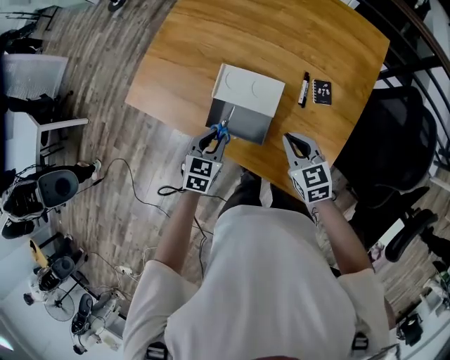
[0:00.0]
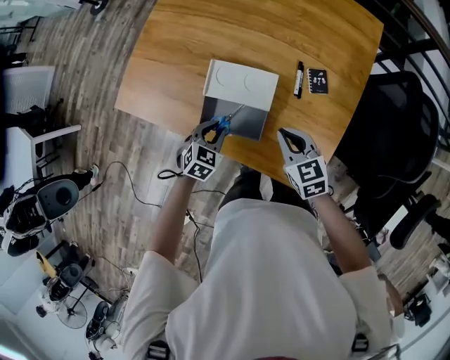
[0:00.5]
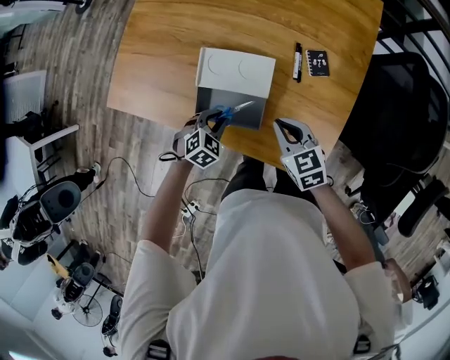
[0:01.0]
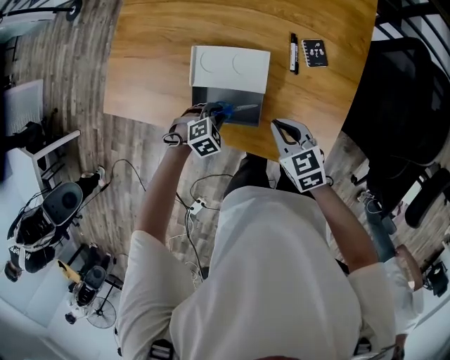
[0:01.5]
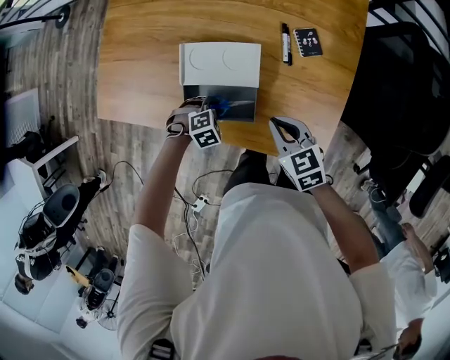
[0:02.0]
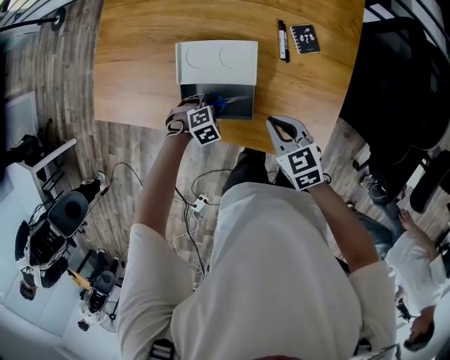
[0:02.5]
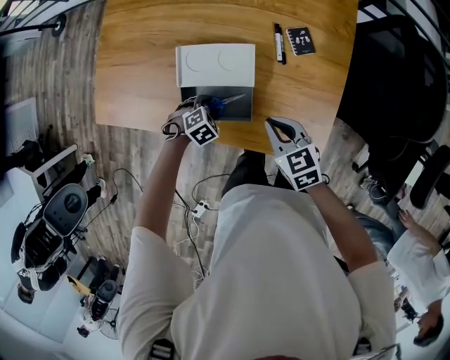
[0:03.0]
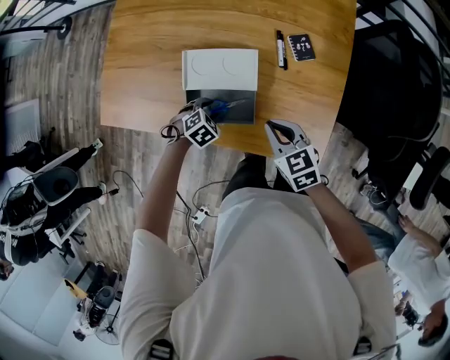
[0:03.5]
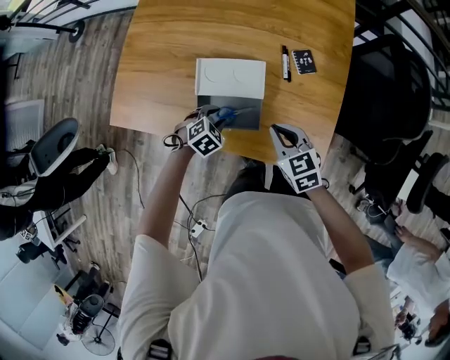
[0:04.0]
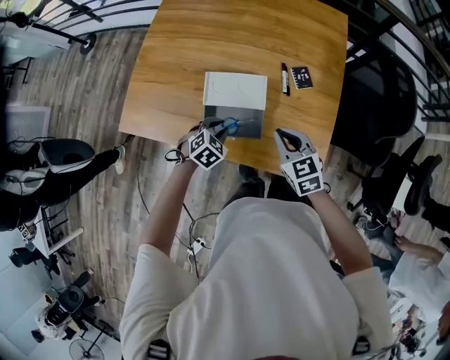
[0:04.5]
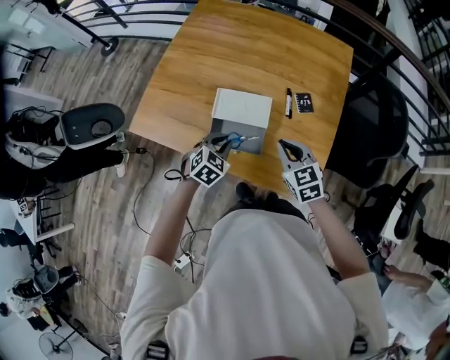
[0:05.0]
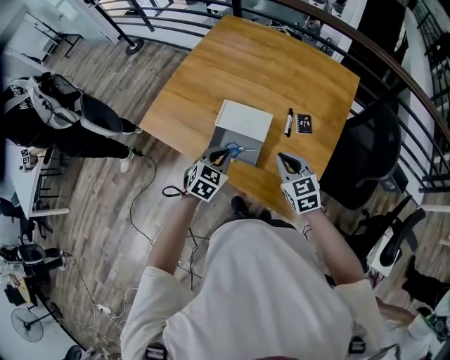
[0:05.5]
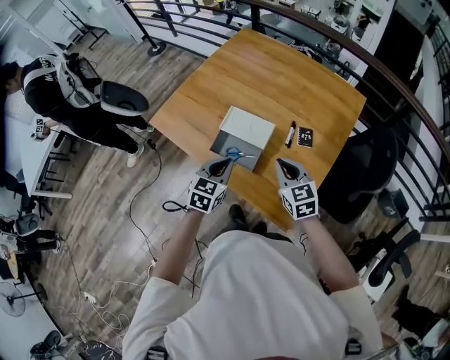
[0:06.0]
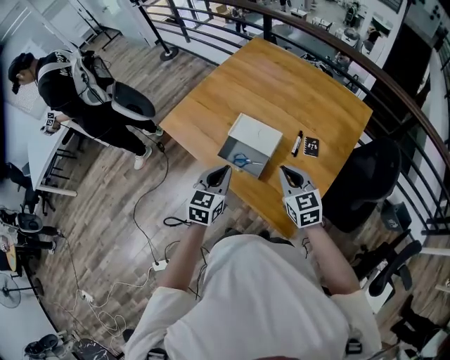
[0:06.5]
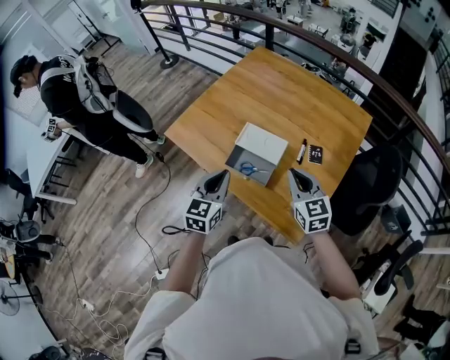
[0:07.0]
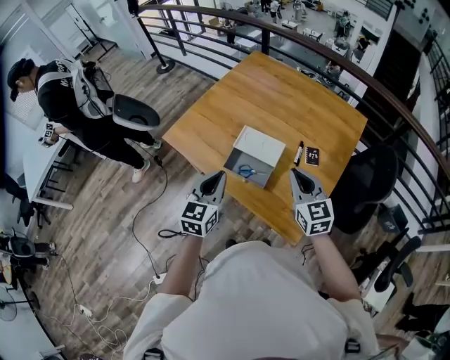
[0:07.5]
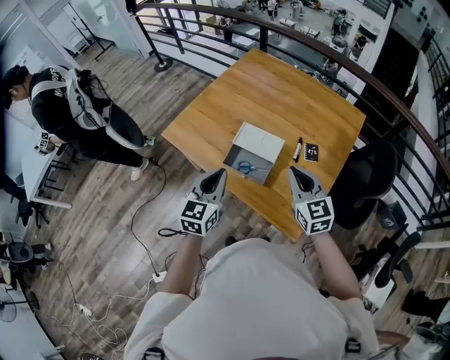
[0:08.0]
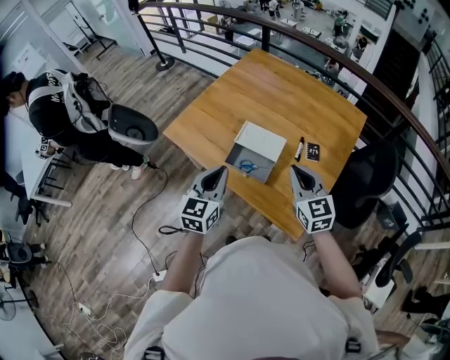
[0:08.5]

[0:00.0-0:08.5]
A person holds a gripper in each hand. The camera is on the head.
0:00.0 to 0:02.0: The left gripper heads downward, covering roughly 20 cm, and rolls clockwise, seen from behind, by about 60 degrees, while the right gripper is displaced downward by approximately 5 cm.
0:02.0 to 0:04.0: The right gripper ends up about 5 cm from where it was. The left gripper is displaced upward by roughly 10 cm, and rotates about 20 degrees.
0:04.0 to 0:06.5: The left gripper moves upward, some 30 cm, angles its fingers upward, by roughly 40 degrees, and closes; the right gripper shifts roughly 20 cm upward, and swivels roughly 30 degrees.
0:06.5 to 0:08.5: The right gripper is displaced upward by approximately 5 cm. Meanwhile the left gripper is displaced upward and to the left by roughly 10 cm.

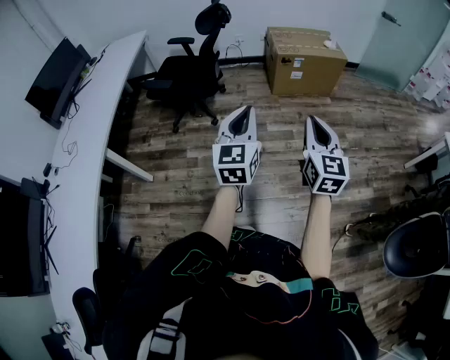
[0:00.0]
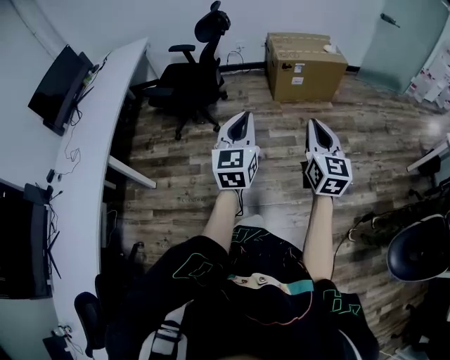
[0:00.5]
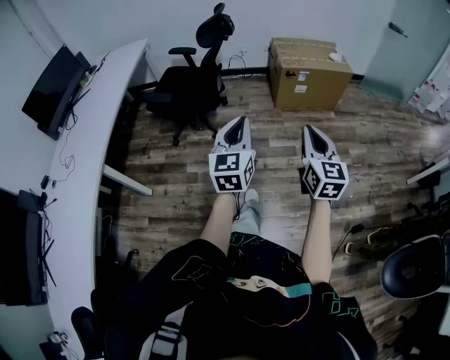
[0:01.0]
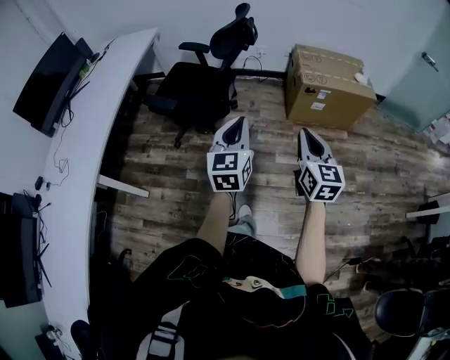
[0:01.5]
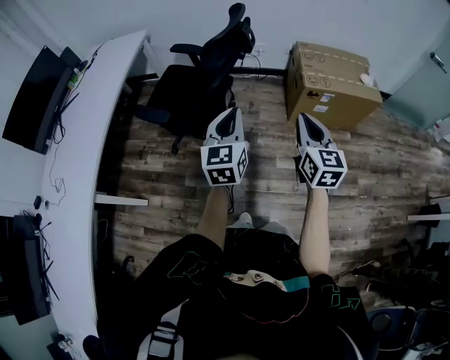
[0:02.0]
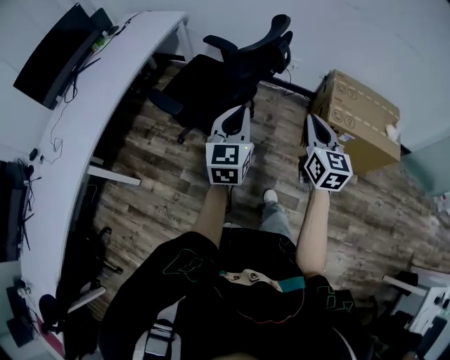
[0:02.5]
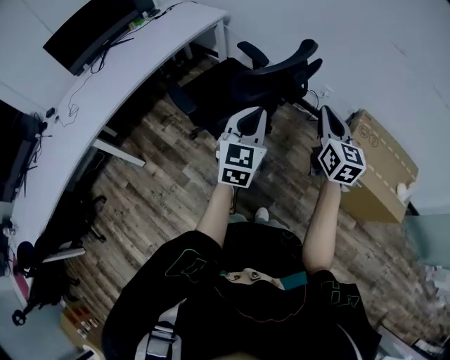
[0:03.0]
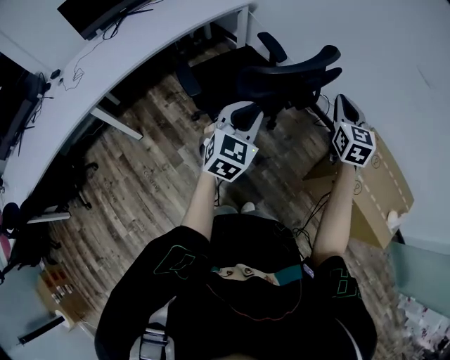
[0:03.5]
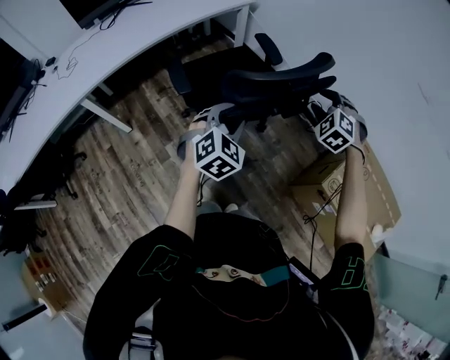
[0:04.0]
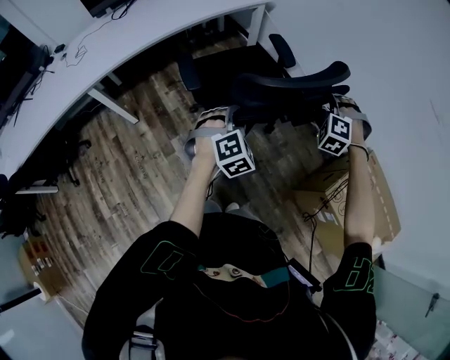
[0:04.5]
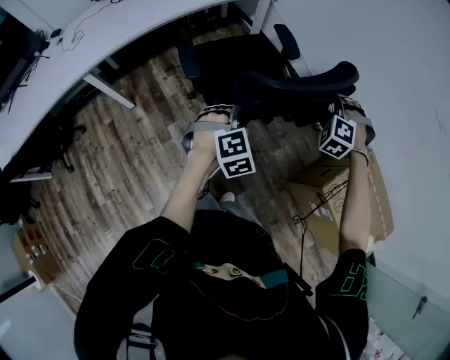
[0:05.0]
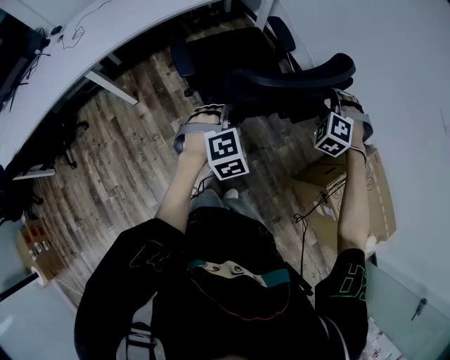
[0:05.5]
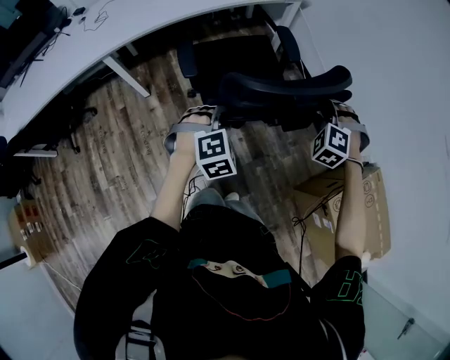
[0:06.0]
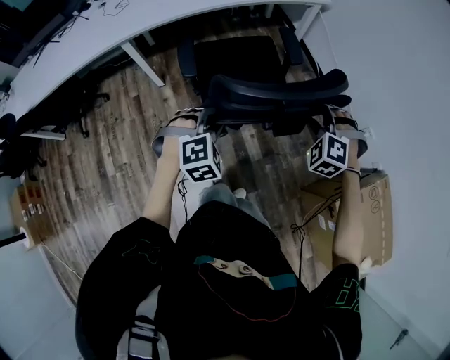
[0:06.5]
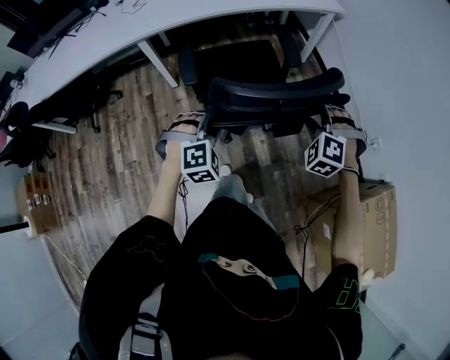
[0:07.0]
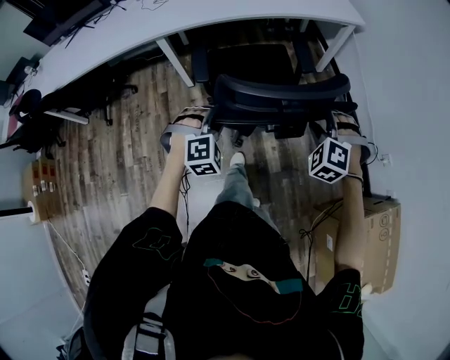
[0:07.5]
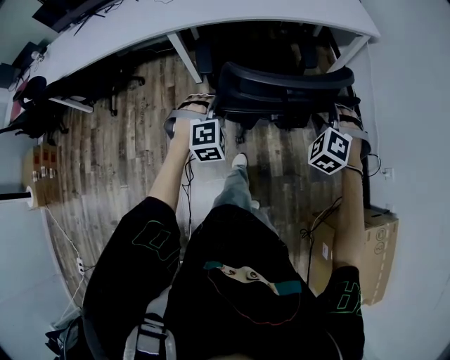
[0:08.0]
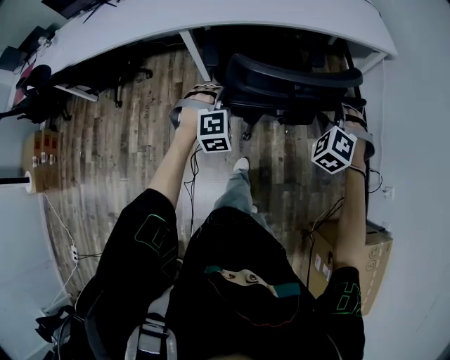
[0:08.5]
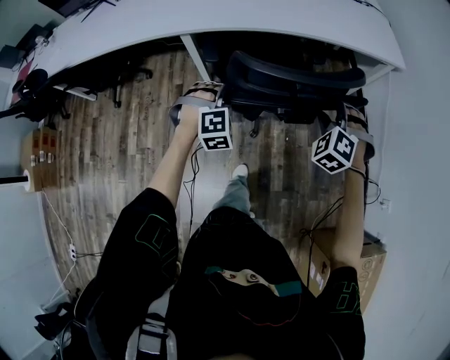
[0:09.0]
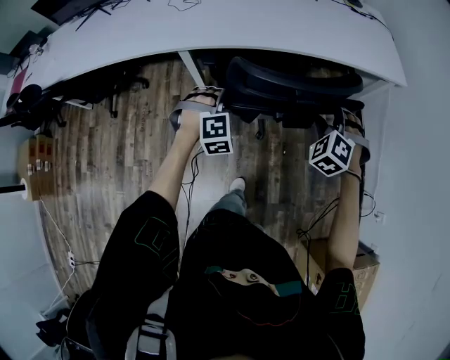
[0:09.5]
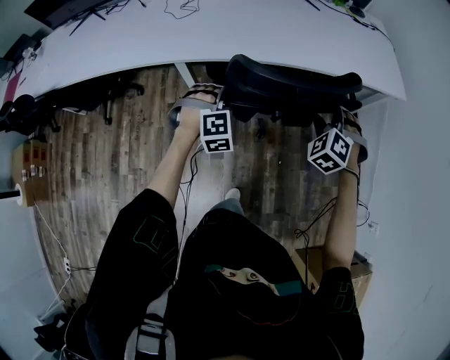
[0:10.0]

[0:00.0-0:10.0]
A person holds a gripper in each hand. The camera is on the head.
0:00.0 to 0:02.0: Both grippers are carried forward, some 40 cm.
0:02.0 to 0:04.0: The right gripper changes place by roughly 50 cm, rotates around the line of its fingers by roughly 80 degrees, counterclockwise from behind, and opens its fingers. Meanwhile the left gripper shifts by roughly 25 cm, rotates roughly 50 degrees, and opens up.
0:04.0 to 0:06.0: The left gripper shifts approximately 15 cm to the left and downward, and changes its angle by approximately 30 degrees, while the right gripper goes about 15 cm to the left, and changes its angle by about 20 degrees.
0:06.0 to 0:08.0: Both grippers move to the left, approximately 20 cm.
0:08.0 to 0:10.0: Both grippers travel together forward, about 30 cm.

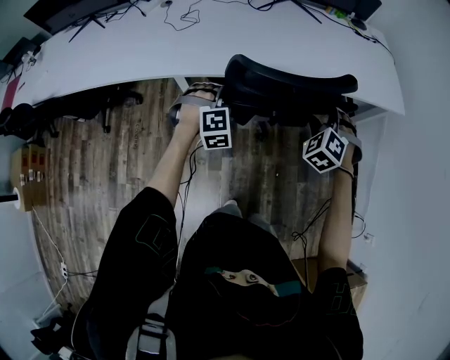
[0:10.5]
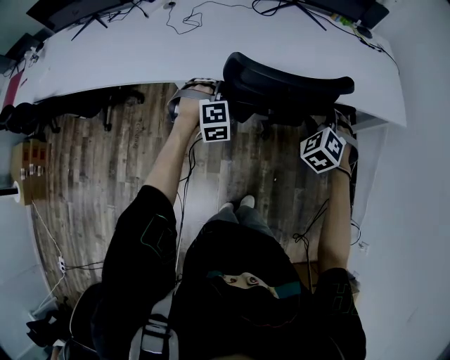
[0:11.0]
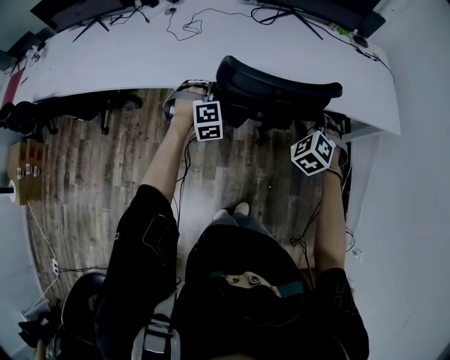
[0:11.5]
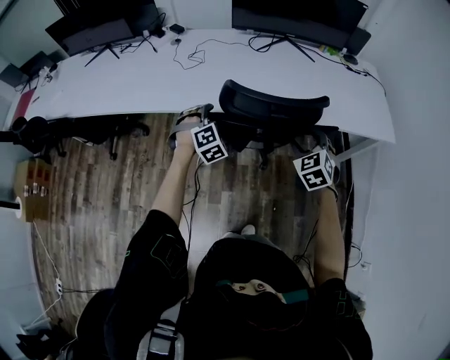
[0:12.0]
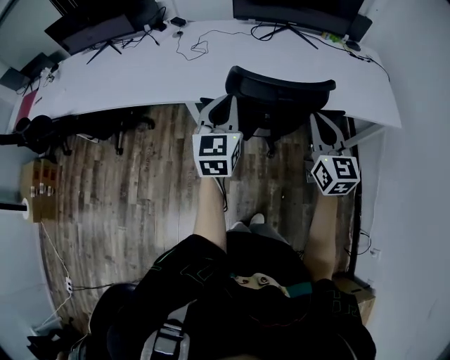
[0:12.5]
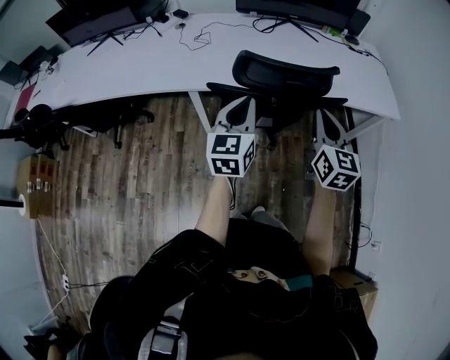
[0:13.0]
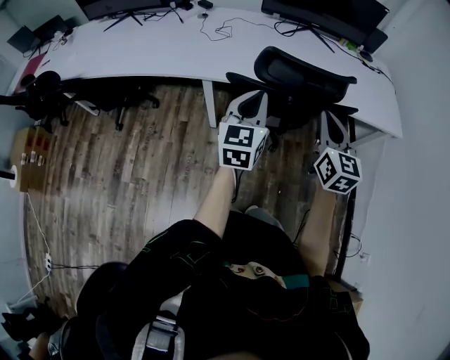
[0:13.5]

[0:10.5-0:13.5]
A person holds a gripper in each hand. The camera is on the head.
0:10.5 to 0:12.0: The left gripper moves to the left, approximately 5 cm, changes its angle by some 20 degrees, and opens its fingers. The right gripper shifts by about 5 cm, and rotates approximately 30 degrees.
0:12.0 to 0:13.5: The right gripper moves upward, backward and to the left, about 15 cm, tilts its fingers some 30 degrees upward, and closes its fingers; the left gripper moves upward and backward, roughly 20 cm, rotates around the line of its fingers by about 60 degrees, counterclockwise from behind, and closes up.

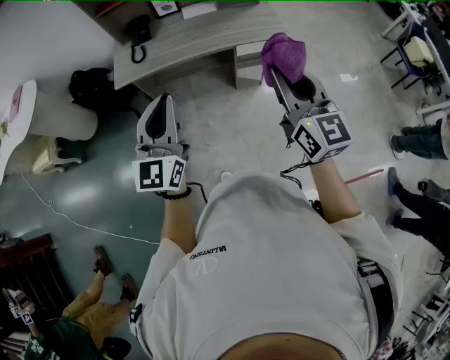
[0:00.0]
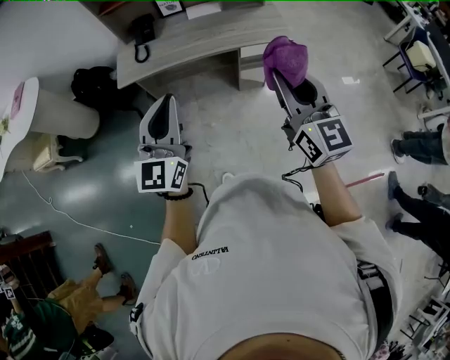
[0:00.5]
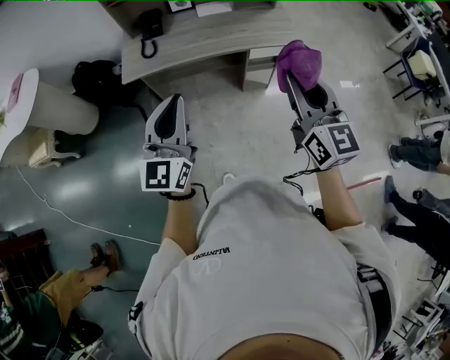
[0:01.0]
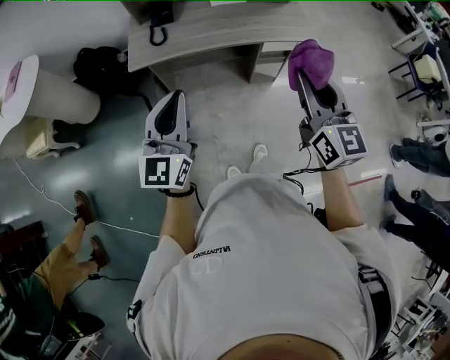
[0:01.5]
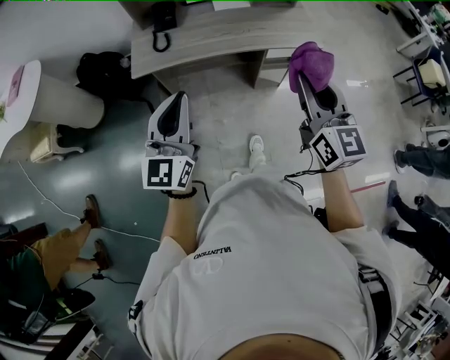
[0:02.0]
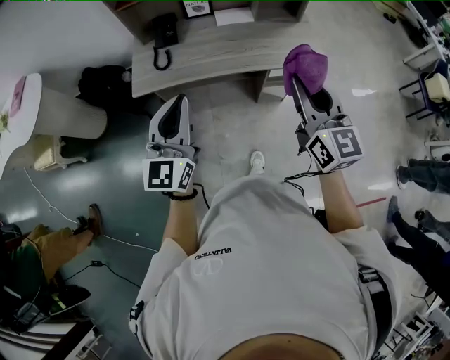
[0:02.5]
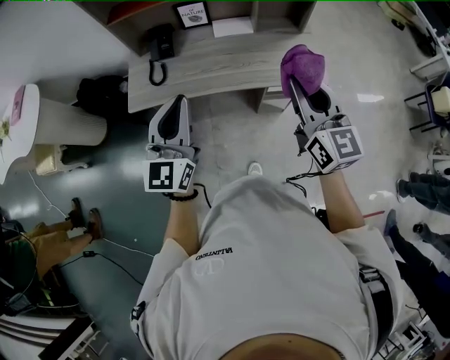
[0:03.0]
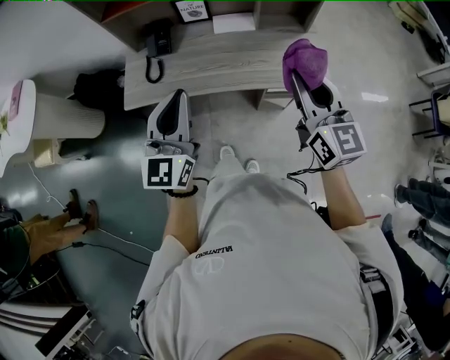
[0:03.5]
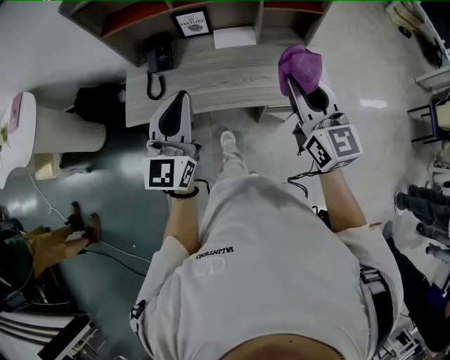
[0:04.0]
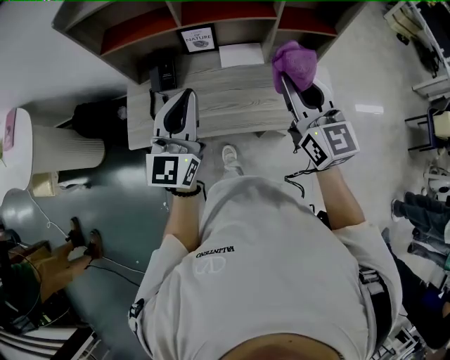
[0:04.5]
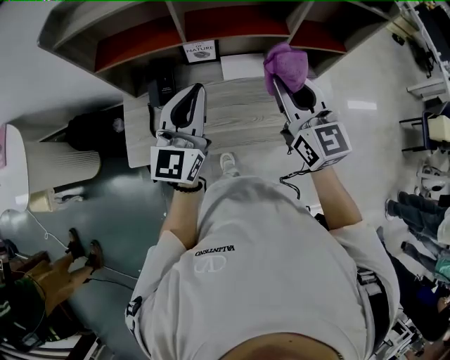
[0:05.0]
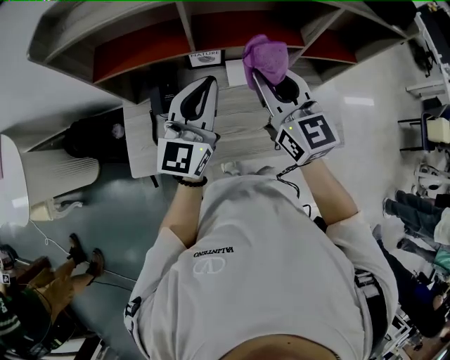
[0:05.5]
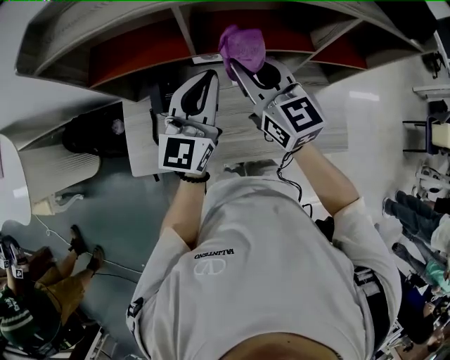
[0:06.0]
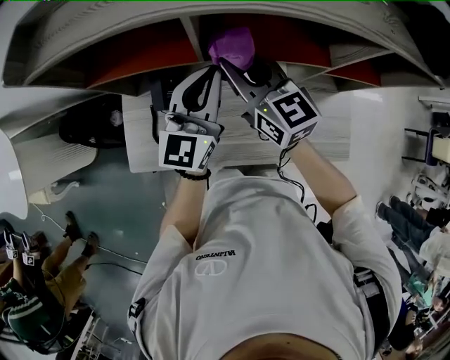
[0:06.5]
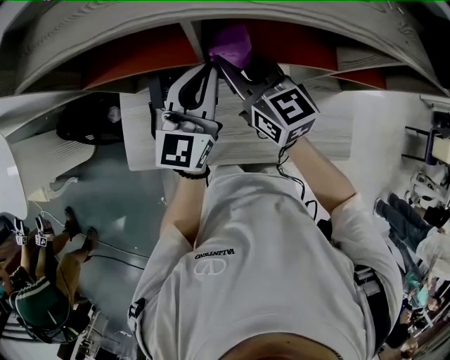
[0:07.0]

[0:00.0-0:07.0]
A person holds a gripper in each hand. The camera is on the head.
0:00.0 to 0:02.0: The two grippers go approximately 10 cm to the left and forward.
0:02.0 to 0:03.5: The right gripper moves forward, approximately 25 cm. The left gripper is displaced forward and to the right by some 25 cm.
0:03.5 to 0:05.0: The right gripper is displaced forward and to the left by about 25 cm, while the left gripper is displaced forward by approximately 25 cm.
0:05.0 to 0:07.0: The left gripper travels forward by roughly 15 cm, while the right gripper travels forward, to the left and downward by some 25 cm, and swivels roughly 20 degrees.
